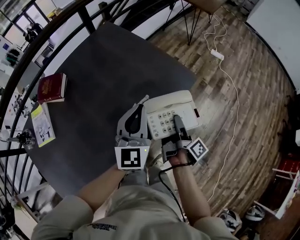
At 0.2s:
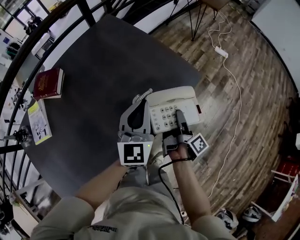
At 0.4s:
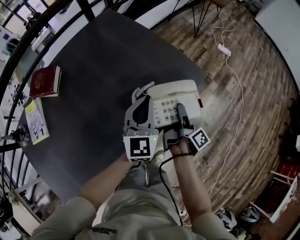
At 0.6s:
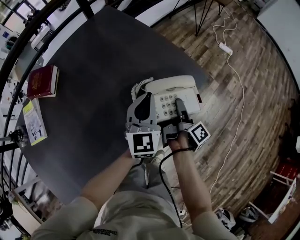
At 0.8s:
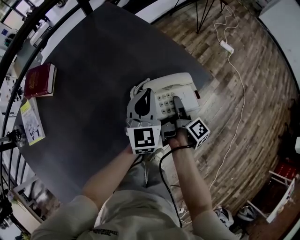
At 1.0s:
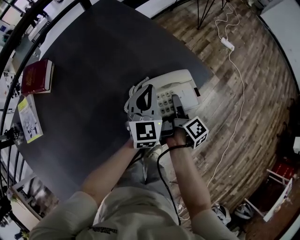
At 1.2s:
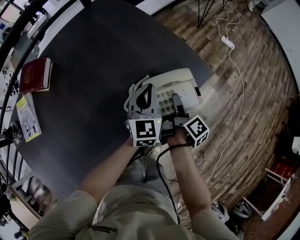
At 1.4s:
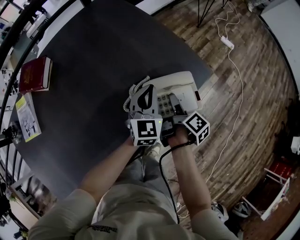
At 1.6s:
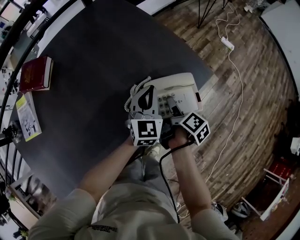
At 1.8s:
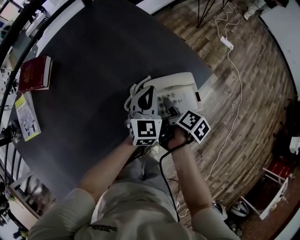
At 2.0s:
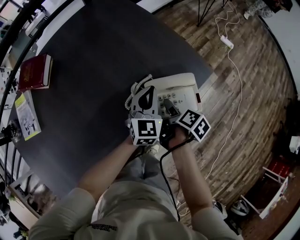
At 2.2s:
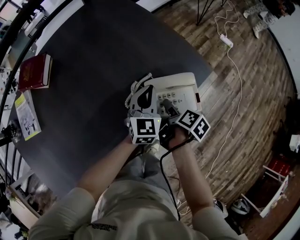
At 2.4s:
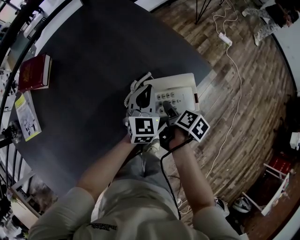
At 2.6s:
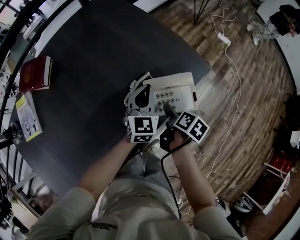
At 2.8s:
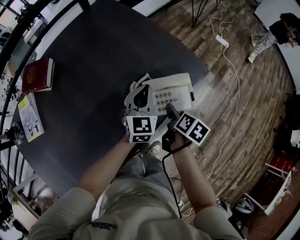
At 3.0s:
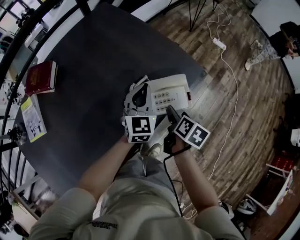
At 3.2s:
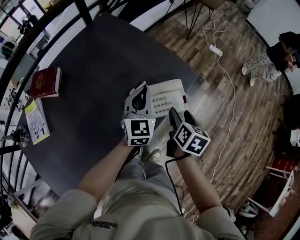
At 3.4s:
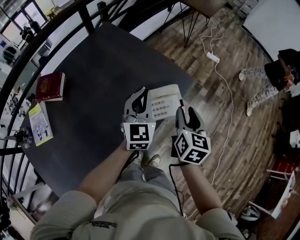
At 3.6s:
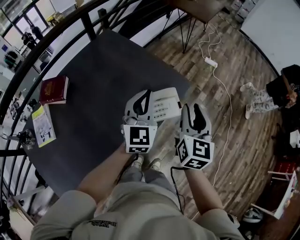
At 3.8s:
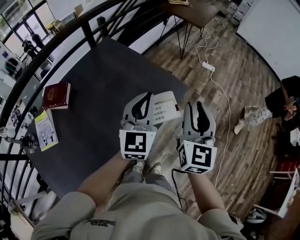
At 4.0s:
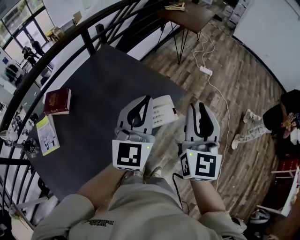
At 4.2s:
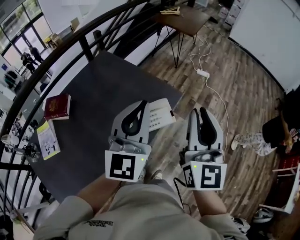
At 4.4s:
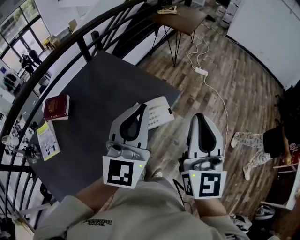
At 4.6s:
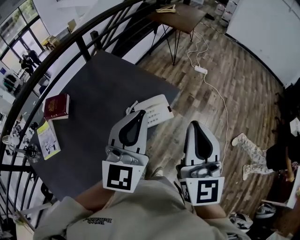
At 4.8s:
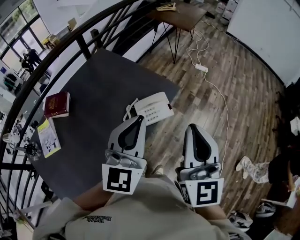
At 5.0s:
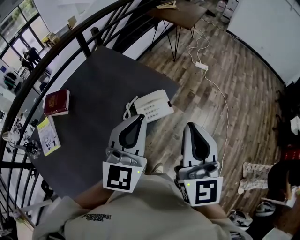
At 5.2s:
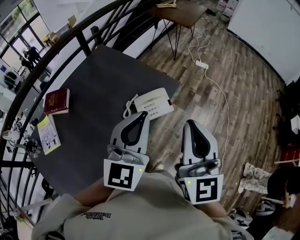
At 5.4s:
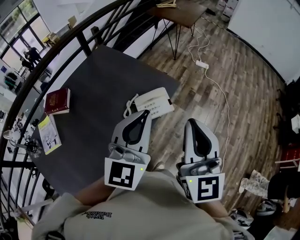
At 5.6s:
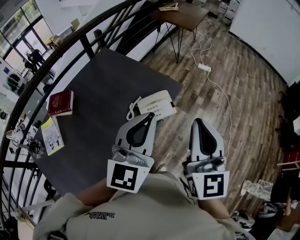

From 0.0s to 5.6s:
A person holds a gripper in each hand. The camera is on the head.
From 0.0s to 1.4s: The left gripper shifts roughly 20 cm downward and forward, while the right gripper is displaced downward and forward by some 15 cm, and changes its angle by about 30 degrees.
From 1.4s to 2.8s: The right gripper heads backward, covering roughly 5 cm, and swivels about 40 degrees.
From 2.8s to 4.2s: Both grippers move upward, approximately 40 cm. The right gripper tips its fingers upward by some 60 degrees, and closes up. The left gripper swivels some 30 degrees.
From 4.2s to 5.6s: The grippers both shift backward by about 5 cm.

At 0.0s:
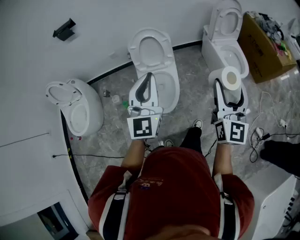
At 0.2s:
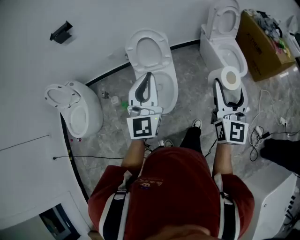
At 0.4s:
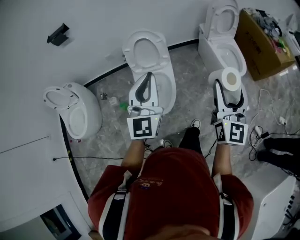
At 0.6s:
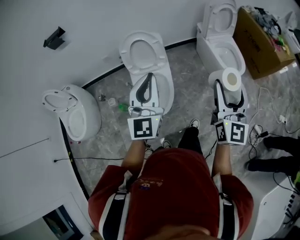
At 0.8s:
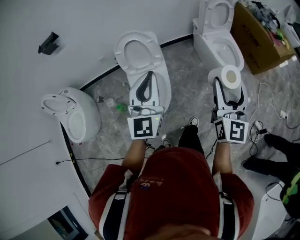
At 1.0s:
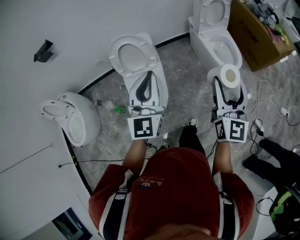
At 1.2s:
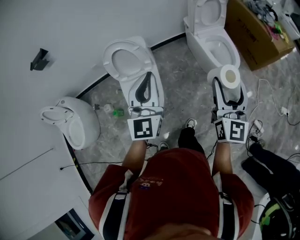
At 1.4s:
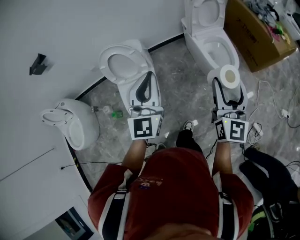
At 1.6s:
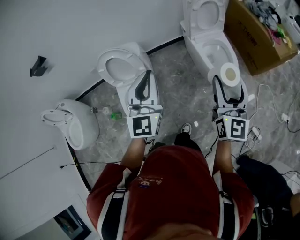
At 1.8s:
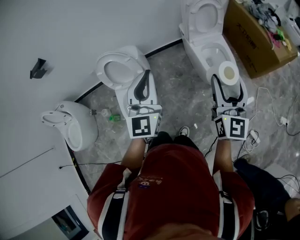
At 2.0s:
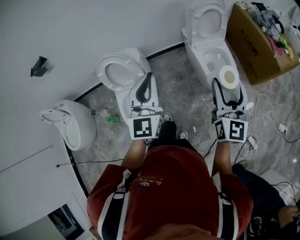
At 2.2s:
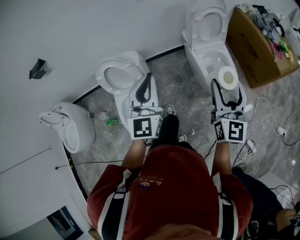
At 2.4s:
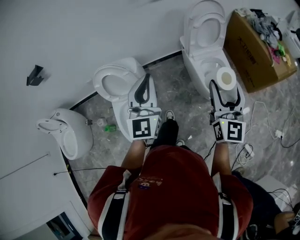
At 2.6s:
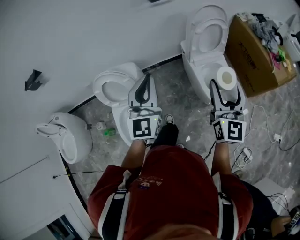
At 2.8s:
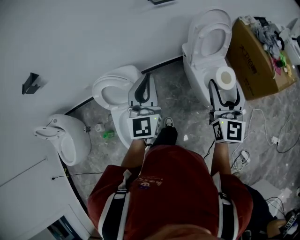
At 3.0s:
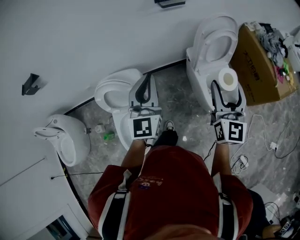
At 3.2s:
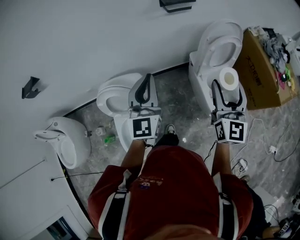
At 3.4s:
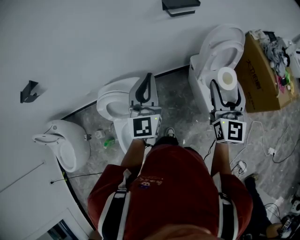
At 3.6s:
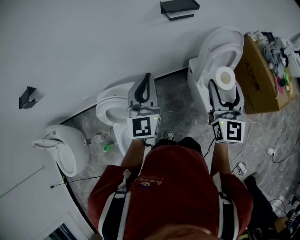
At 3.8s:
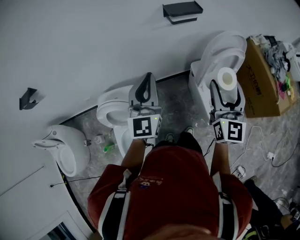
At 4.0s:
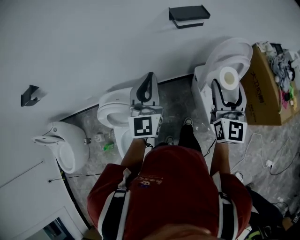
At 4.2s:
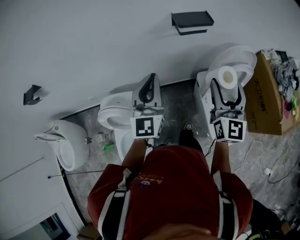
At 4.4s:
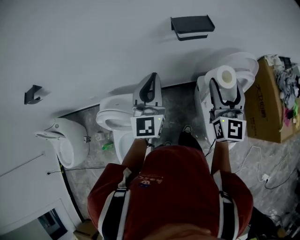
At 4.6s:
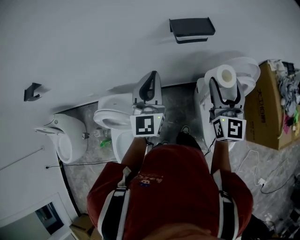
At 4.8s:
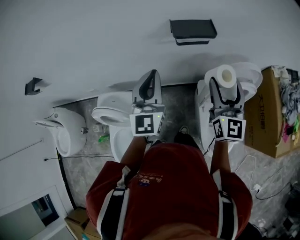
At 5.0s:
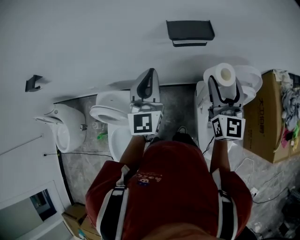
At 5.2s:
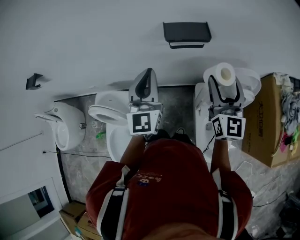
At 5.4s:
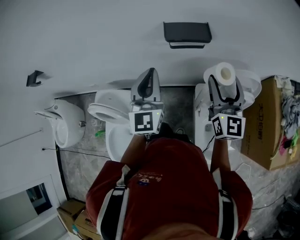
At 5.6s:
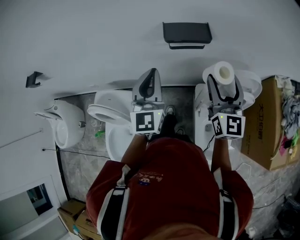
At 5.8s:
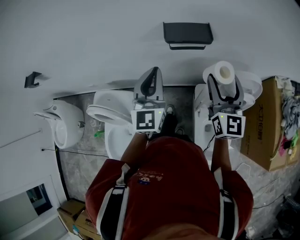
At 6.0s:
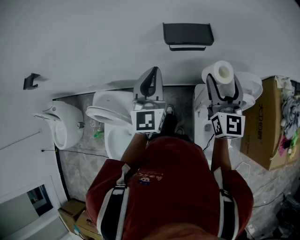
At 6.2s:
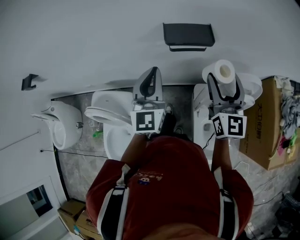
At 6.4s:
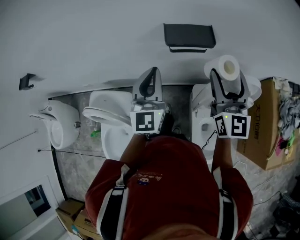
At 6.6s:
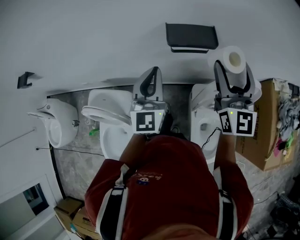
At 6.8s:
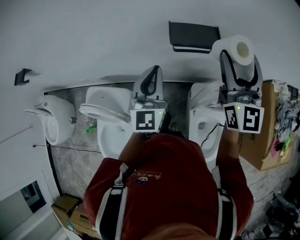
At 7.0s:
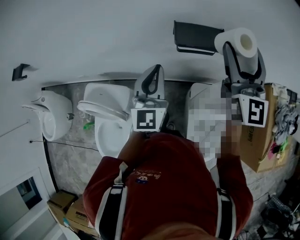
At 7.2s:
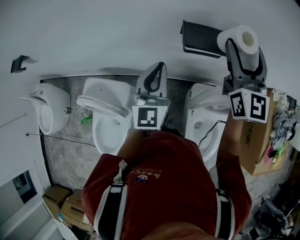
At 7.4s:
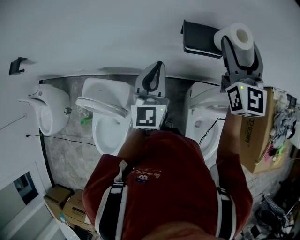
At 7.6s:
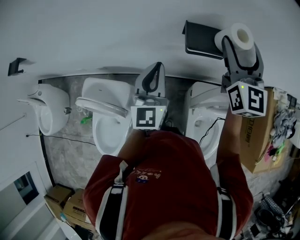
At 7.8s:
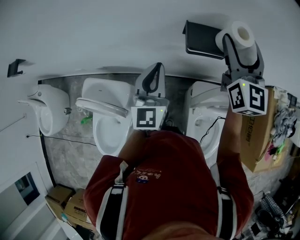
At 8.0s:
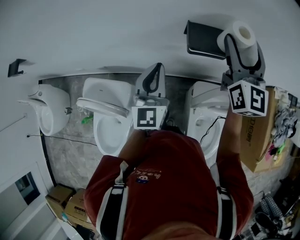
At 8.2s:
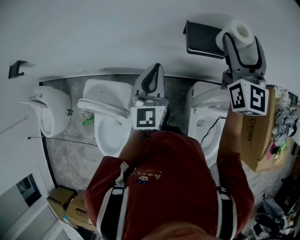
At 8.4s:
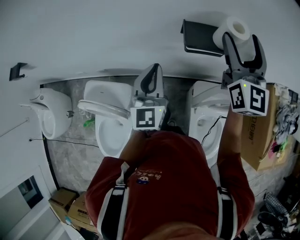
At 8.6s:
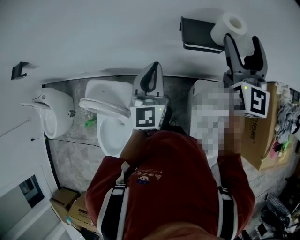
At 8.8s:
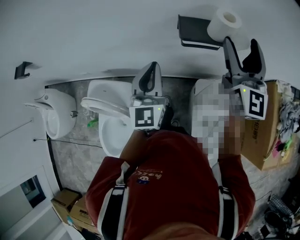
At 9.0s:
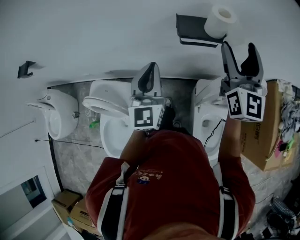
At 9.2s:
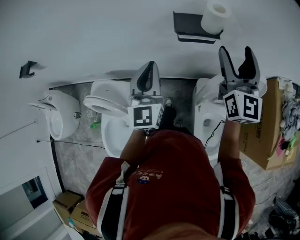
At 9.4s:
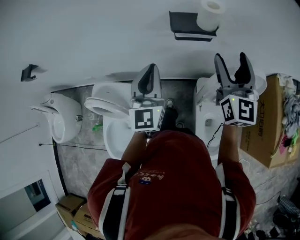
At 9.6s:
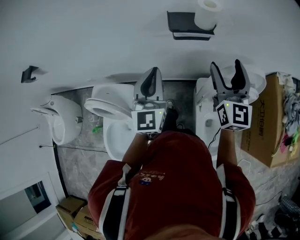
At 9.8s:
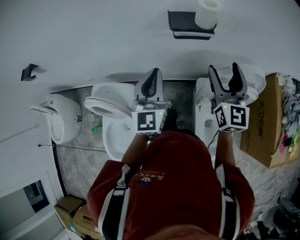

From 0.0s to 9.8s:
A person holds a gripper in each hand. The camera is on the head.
From 0.0s to 1.4s: The two grippers go approximately 35 cm to the right and forward.
From 1.4s to 2.8s: Both grippers travel together forward, some 25 cm.
From 2.8s to 4.2s: The grippers both shift forward by roughly 30 cm.
From 4.2s to 5.6s: The right gripper goes about 20 cm forward and to the right; the left gripper shifts about 20 cm to the right and forward.
From 5.6s to 7.0s: The left gripper heads forward, covering approximately 5 cm. The right gripper shifts some 15 cm forward and upward.
From 7.0s to 8.4s: The left gripper ends up some 5 cm from where it was. The right gripper heads forward, covering about 5 cm.
From 8.4s to 9.8s: The left gripper travels backward by about 10 cm. The right gripper goes some 20 cm backward and downward.

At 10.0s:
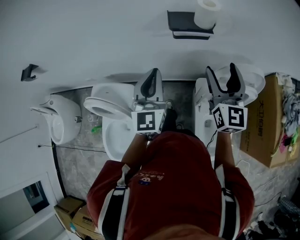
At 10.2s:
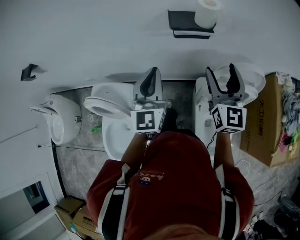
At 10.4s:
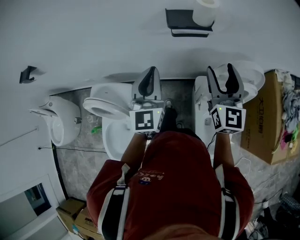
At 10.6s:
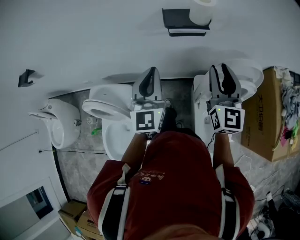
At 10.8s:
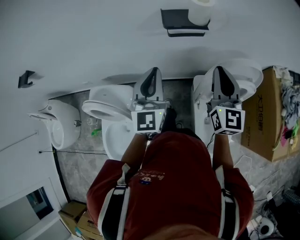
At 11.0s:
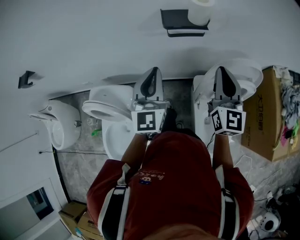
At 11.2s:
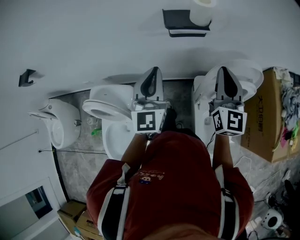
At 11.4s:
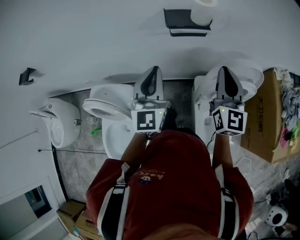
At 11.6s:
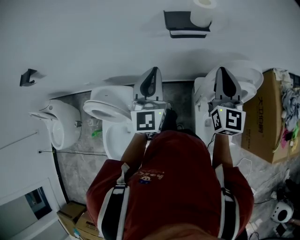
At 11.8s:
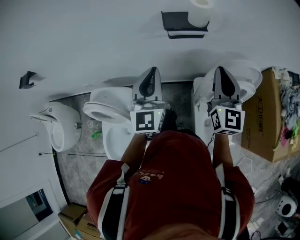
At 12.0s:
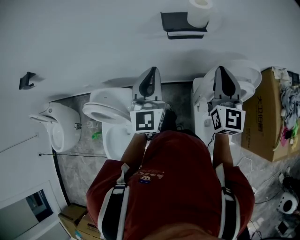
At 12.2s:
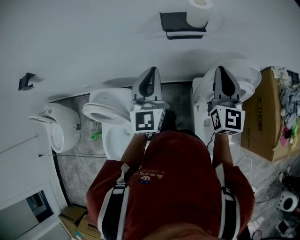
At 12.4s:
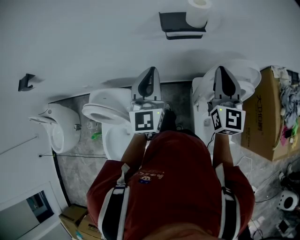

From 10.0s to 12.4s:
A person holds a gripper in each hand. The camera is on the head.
From 10.0s to 11.2s: The right gripper closes.
From 11.2s to 12.4s: The two grippers keep their place.

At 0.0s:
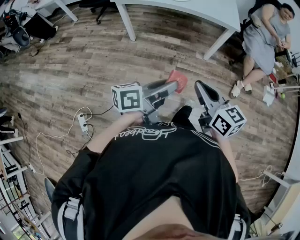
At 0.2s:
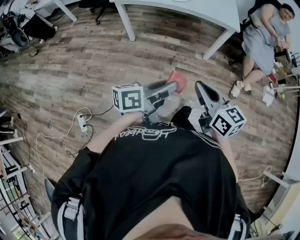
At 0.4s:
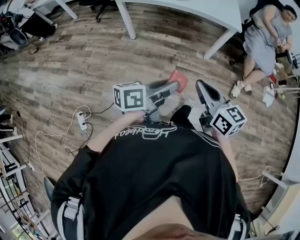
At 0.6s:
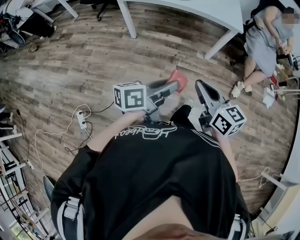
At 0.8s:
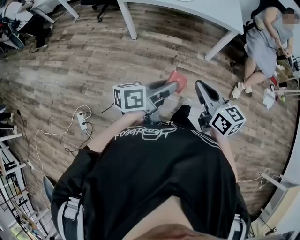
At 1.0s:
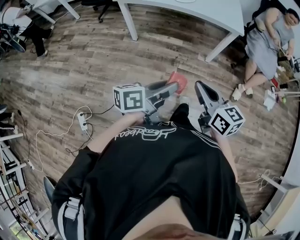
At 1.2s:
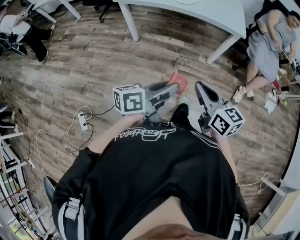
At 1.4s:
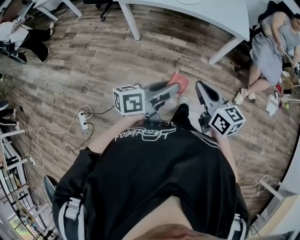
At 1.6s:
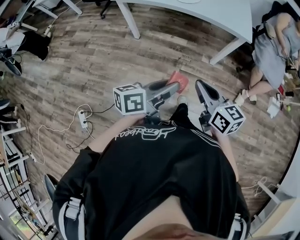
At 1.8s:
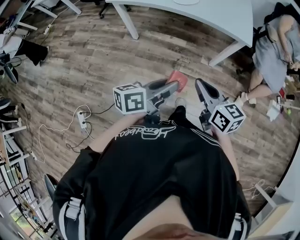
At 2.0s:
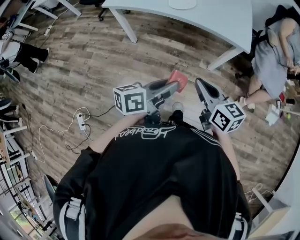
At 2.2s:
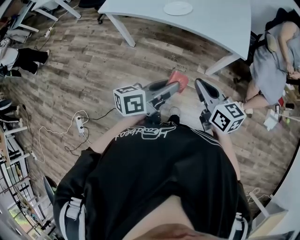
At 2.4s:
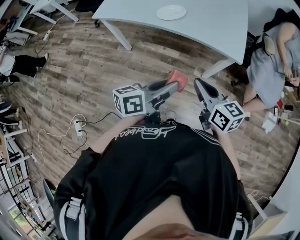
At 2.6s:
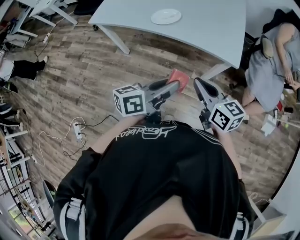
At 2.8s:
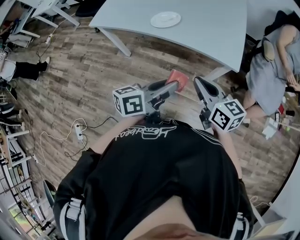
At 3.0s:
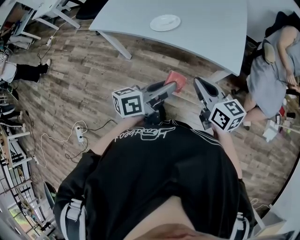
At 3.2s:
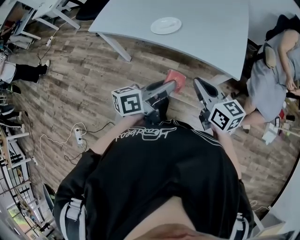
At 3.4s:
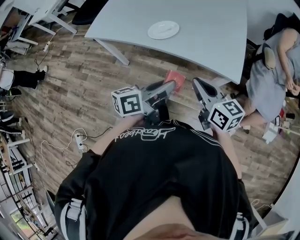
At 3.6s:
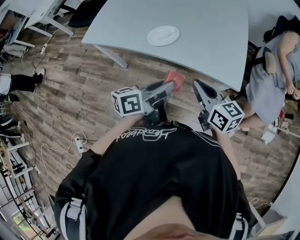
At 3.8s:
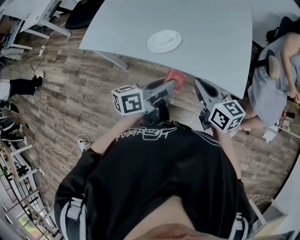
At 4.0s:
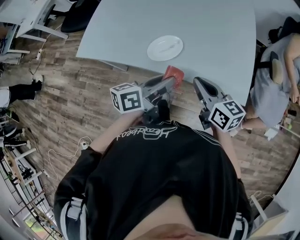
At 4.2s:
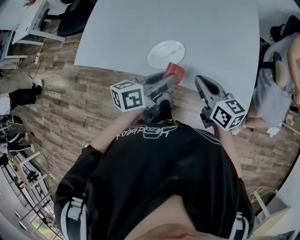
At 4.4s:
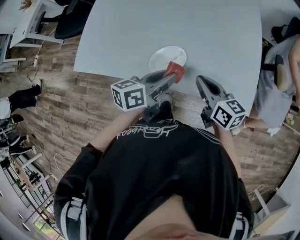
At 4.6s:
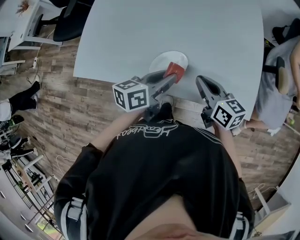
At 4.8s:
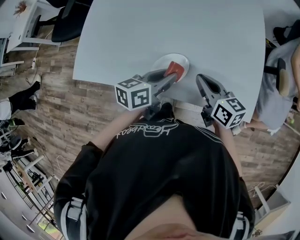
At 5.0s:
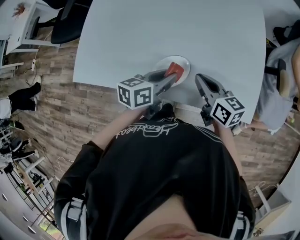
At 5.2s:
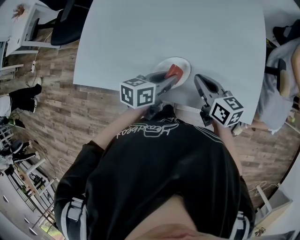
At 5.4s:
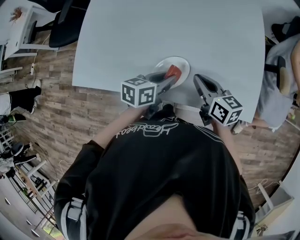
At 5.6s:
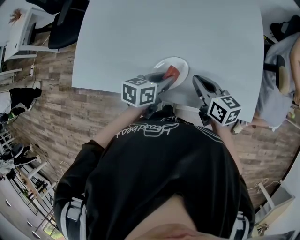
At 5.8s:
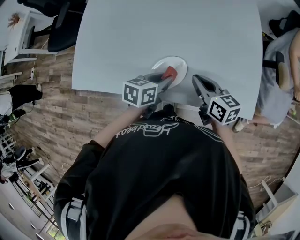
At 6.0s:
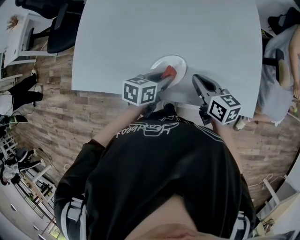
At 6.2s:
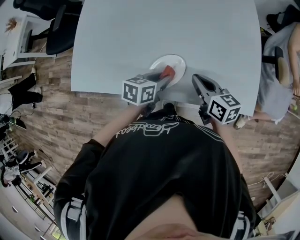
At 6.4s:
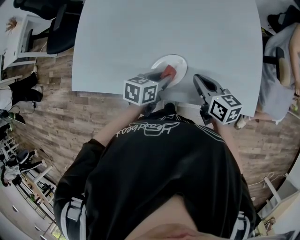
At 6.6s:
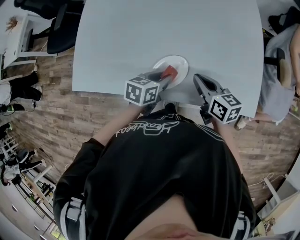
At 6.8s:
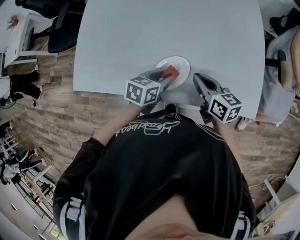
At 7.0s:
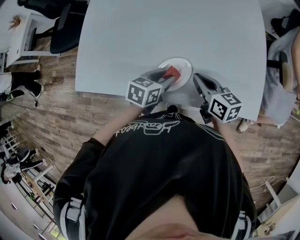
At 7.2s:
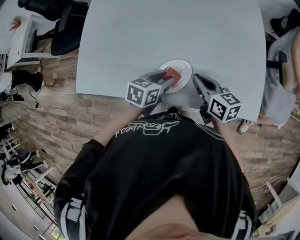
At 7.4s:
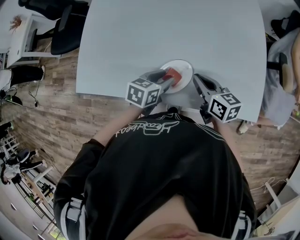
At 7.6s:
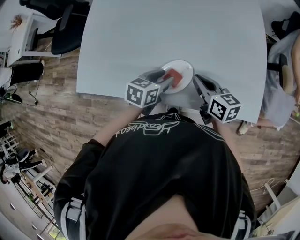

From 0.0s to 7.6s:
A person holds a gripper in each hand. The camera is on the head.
From 0.0s to 1.6s: Both grippers travel together forward, some 15 cm.
From 1.6s to 3.0s: Both grippers move forward and to the right, roughly 30 cm.
From 3.0s to 4.6s: The grippers both shift forward by approximately 35 cm.
From 4.6s to 6.0s: The left gripper is displaced downward by roughly 10 cm, and rotates about 20 degrees.
From 6.0s to 7.6s: The grippers move only a little.
